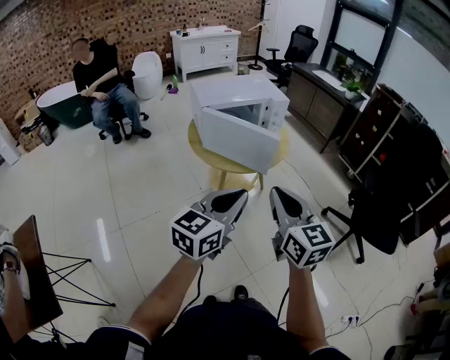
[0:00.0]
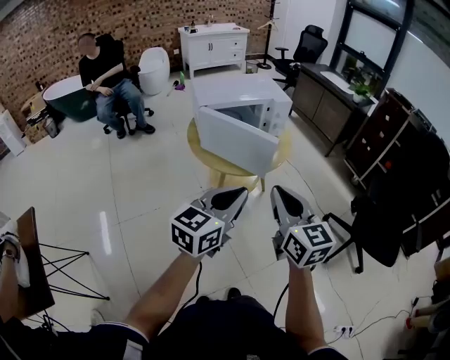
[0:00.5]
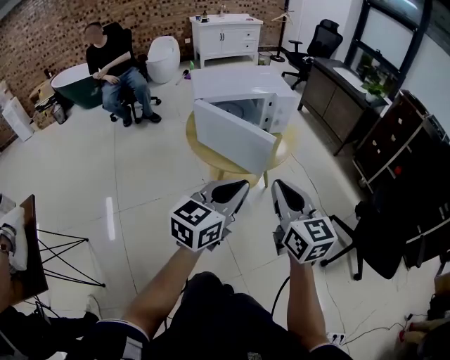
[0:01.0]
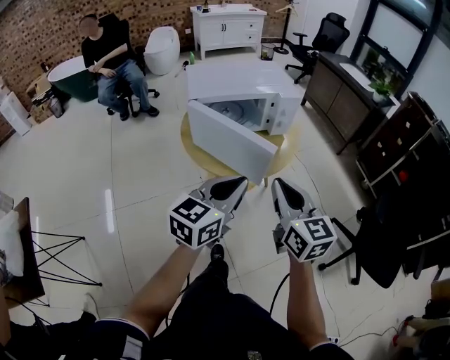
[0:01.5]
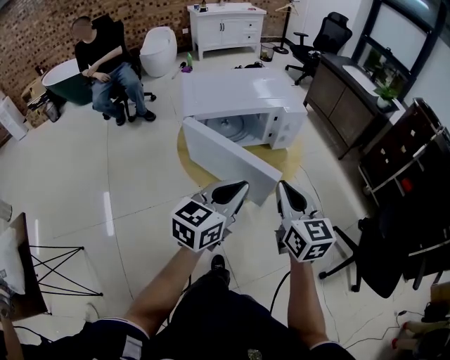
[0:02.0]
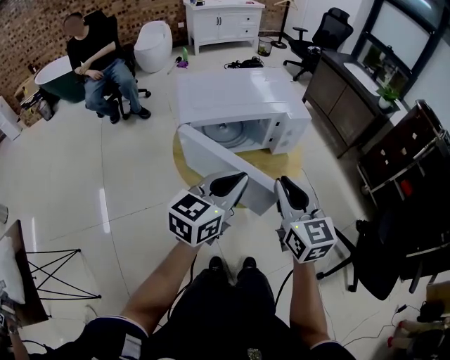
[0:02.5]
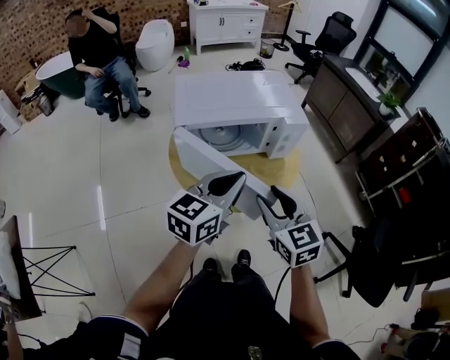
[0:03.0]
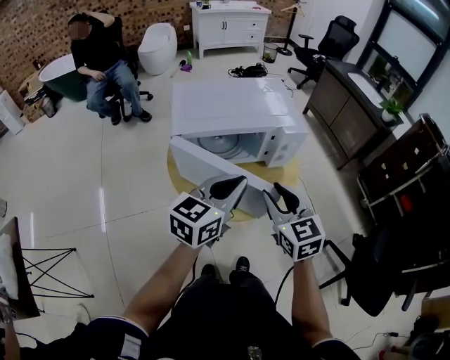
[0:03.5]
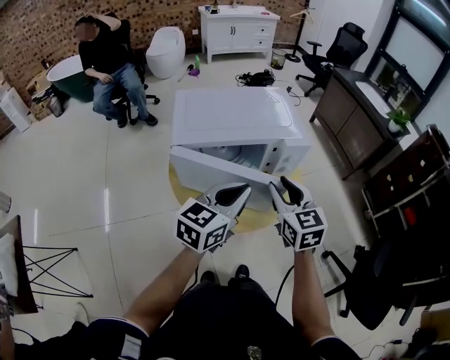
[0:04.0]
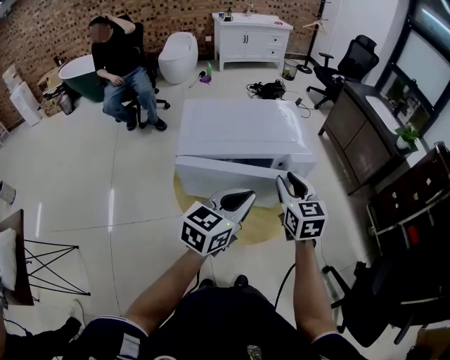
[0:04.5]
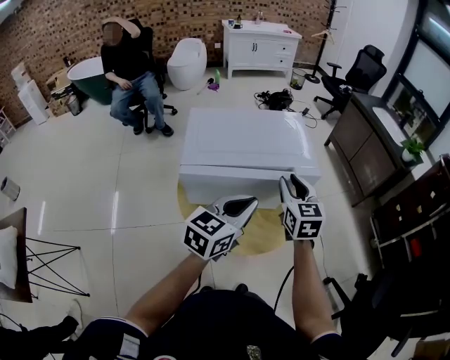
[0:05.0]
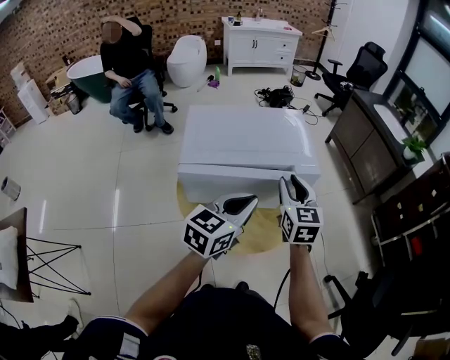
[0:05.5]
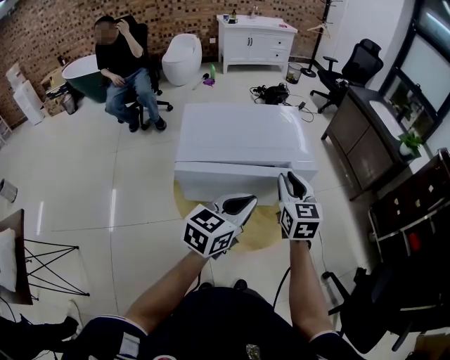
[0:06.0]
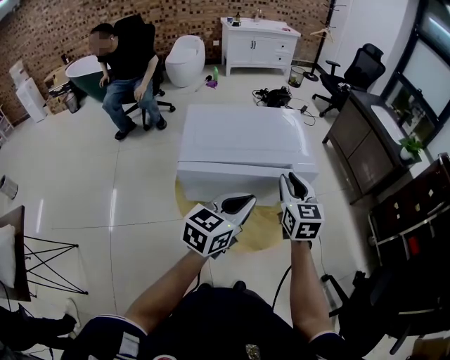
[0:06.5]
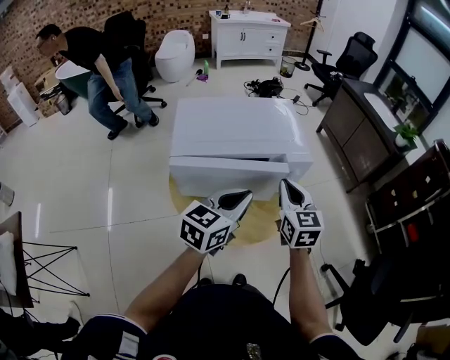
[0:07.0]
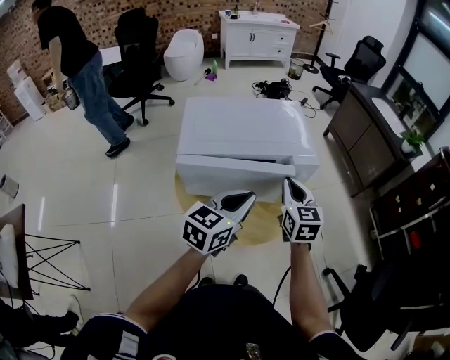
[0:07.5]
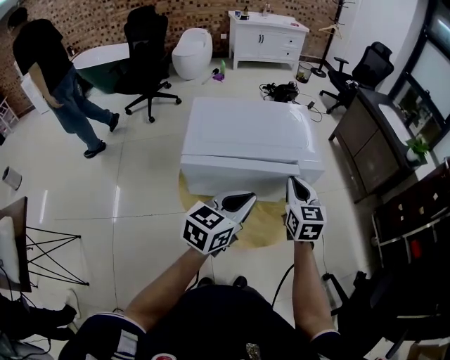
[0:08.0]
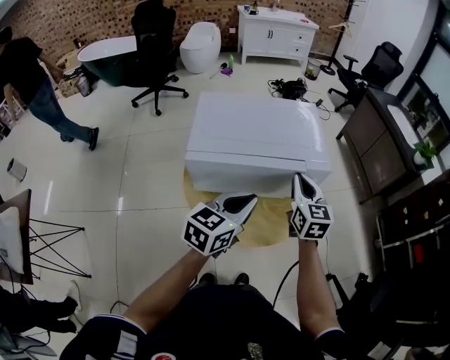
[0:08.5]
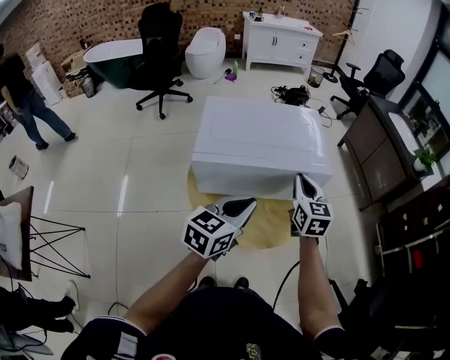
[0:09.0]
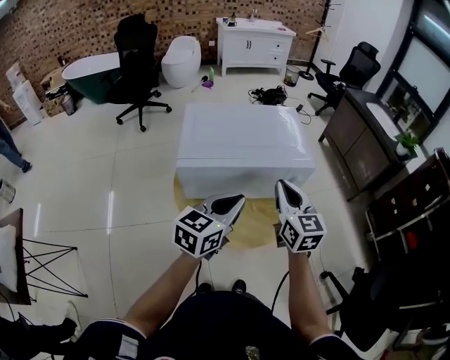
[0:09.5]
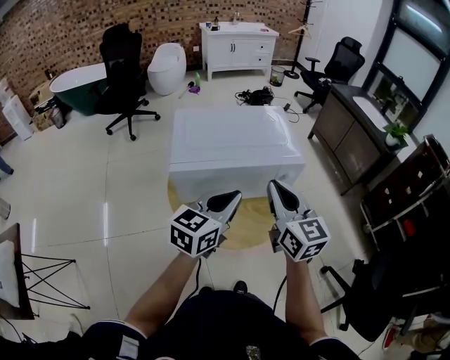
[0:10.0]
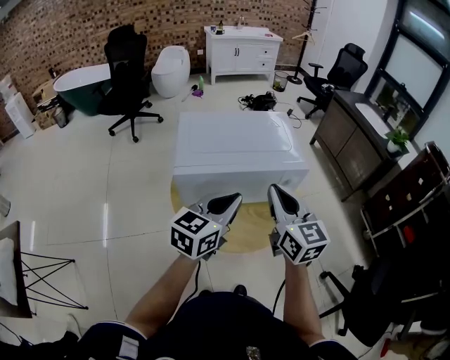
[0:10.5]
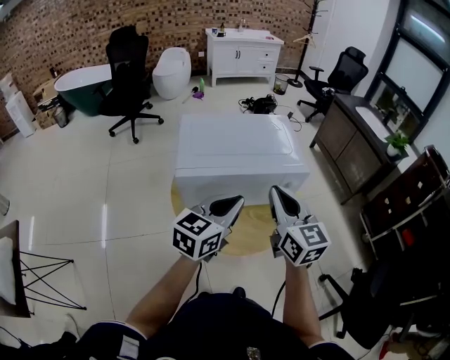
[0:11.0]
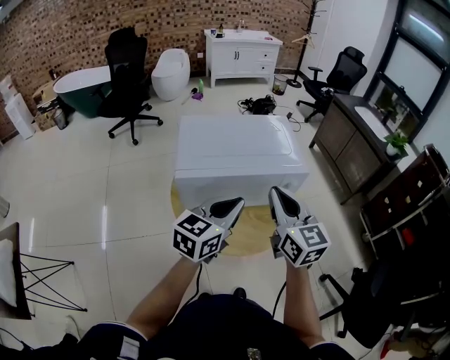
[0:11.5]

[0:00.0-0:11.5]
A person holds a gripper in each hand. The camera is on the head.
0:00.0 to 0:02.0: The two grippers go some 25 cm forward.
0:02.0 to 0:04.0: Both grippers travel together forward, roughly 15 cm. The right gripper opens up.
0:04.0 to 0:06.0: The right gripper moves forward, approximately 10 cm.
0:06.0 to 0:07.5: The right gripper closes.
0:07.5 to 0:09.5: The right gripper moves some 5 cm.
0:09.5 to 0:11.5: The right gripper goes about 5 cm upward.

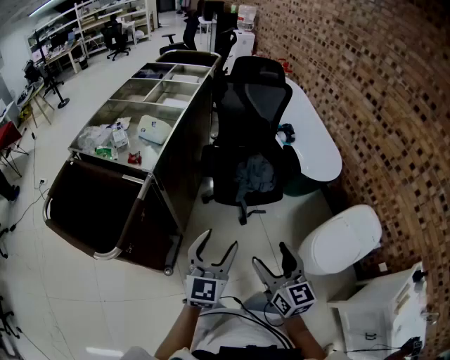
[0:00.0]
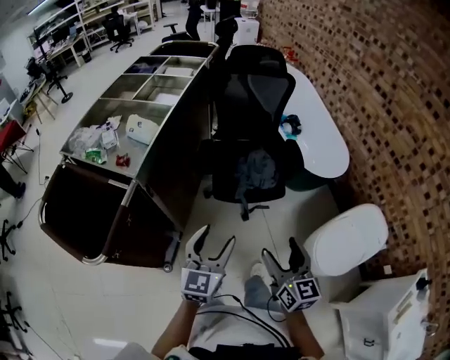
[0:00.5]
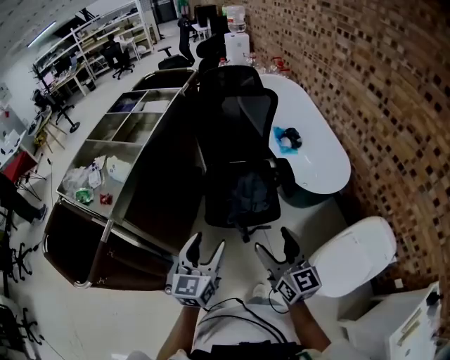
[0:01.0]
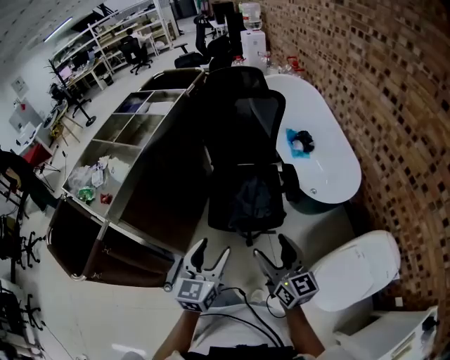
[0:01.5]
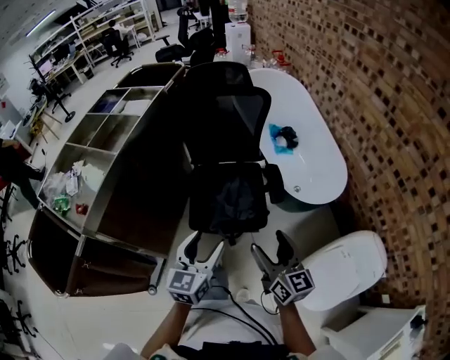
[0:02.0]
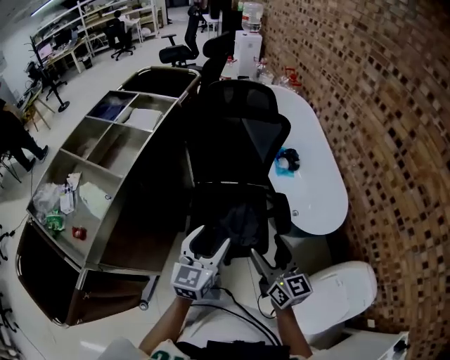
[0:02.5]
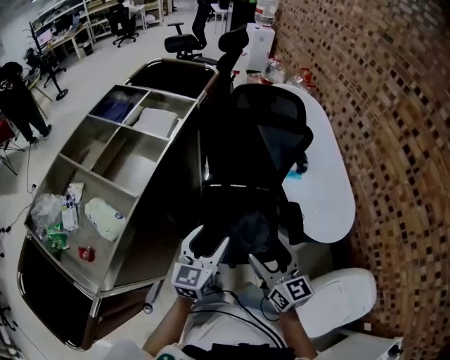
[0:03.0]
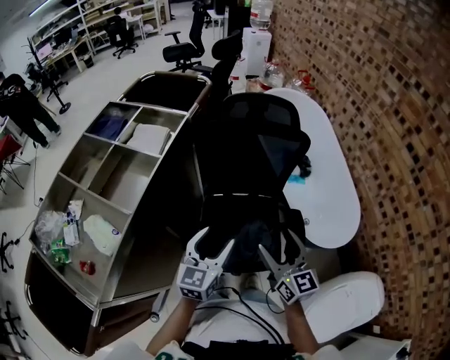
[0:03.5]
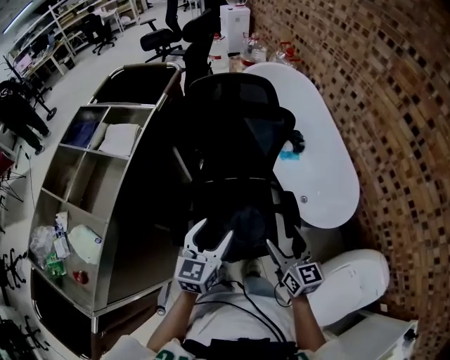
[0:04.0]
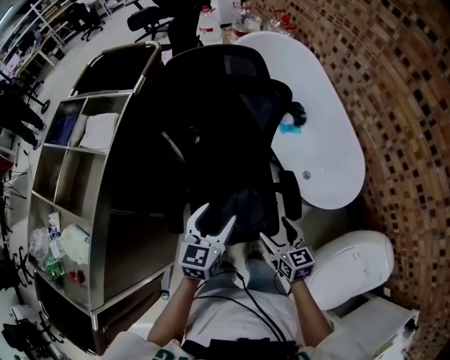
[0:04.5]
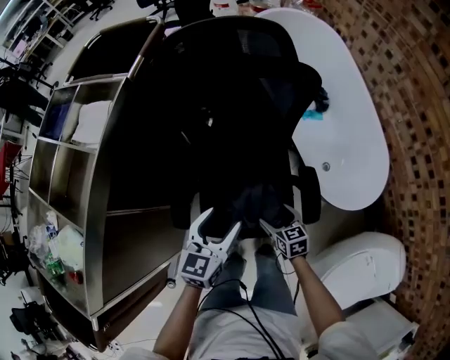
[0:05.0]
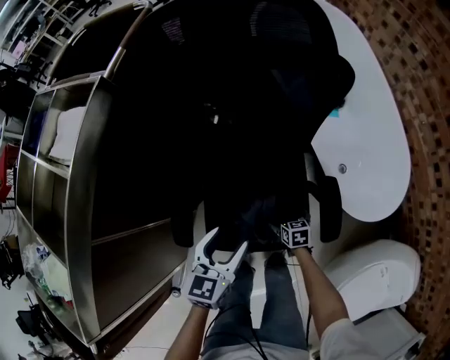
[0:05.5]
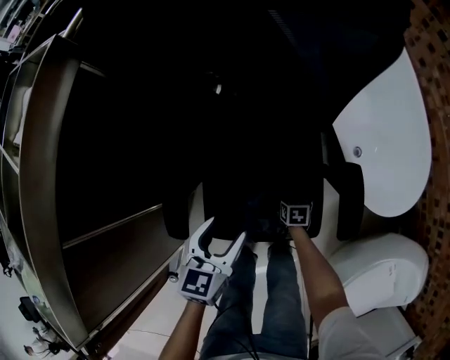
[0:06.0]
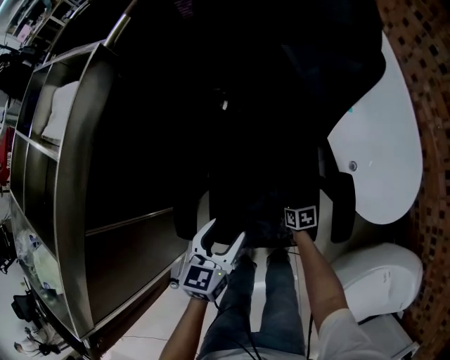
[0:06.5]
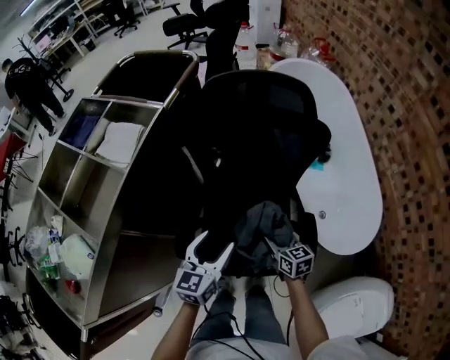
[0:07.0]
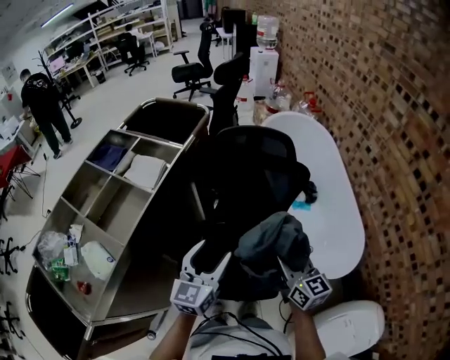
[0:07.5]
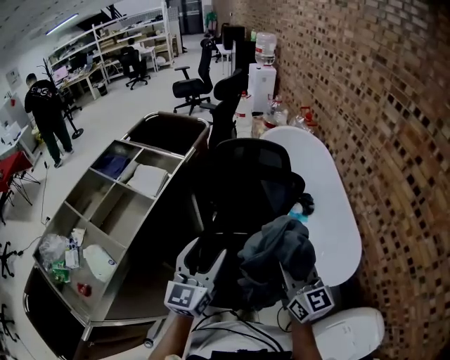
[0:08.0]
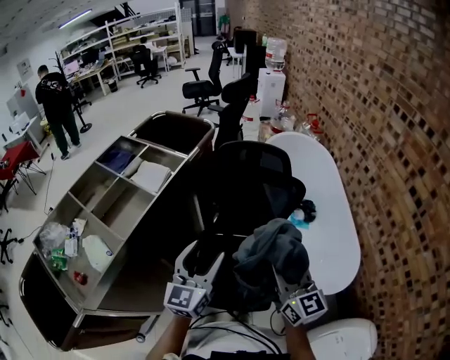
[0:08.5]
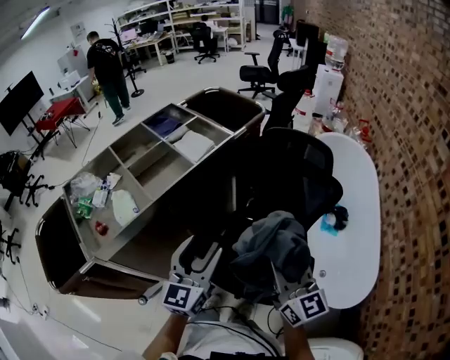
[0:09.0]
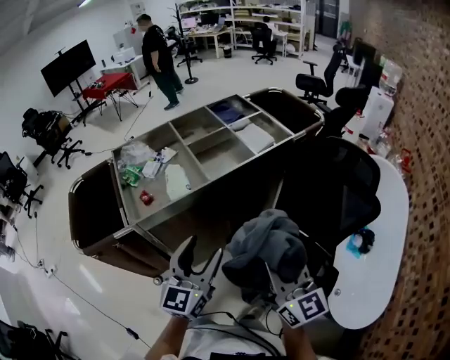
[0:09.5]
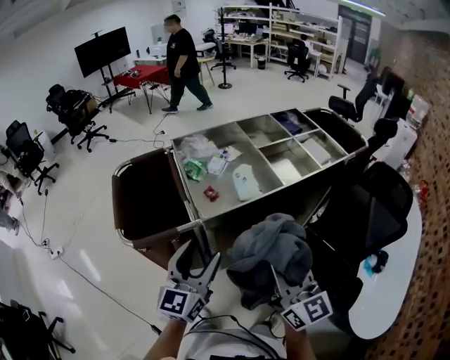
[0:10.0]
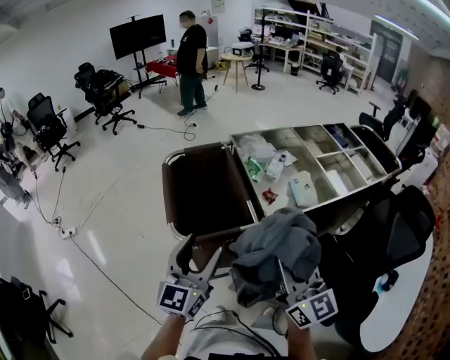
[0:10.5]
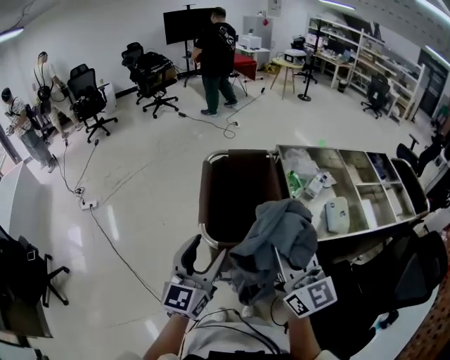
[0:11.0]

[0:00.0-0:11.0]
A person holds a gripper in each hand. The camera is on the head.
0:00.0 to 0:02.0: Both grippers travel together forward and to the right, approximately 35 cm.
0:02.0 to 0:03.5: The right gripper shifts approximately 30 cm forward and to the left; the left gripper is displaced forward by some 25 cm.
0:03.5 to 0:05.5: The right gripper is displaced downward by about 50 cm, tips its fingers downward by some 50 degrees, and opens. Meanwhile the left gripper moves downward, some 20 cm.
0:05.5 to 0:07.5: The right gripper goes about 50 cm upward, tips its fingers upward by about 50 degrees, and closes. The left gripper is displaced upward by roughly 25 cm, and turns by roughly 20 degrees.
0:07.5 to 0:09.0: The left gripper shifts roughly 10 cm backward, upward and to the left, and turns by about 30 degrees. The right gripper heads upward and to the left, covering some 10 cm, and swivels roughly 20 degrees.
0:09.0 to 0:11.0: Both grippers are carried roughly 70 cm. The right gripper rotates some 50 degrees. The left gripper swivels some 50 degrees.

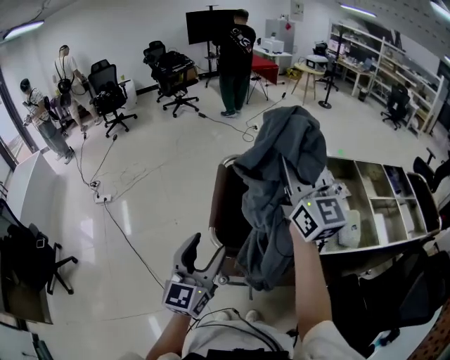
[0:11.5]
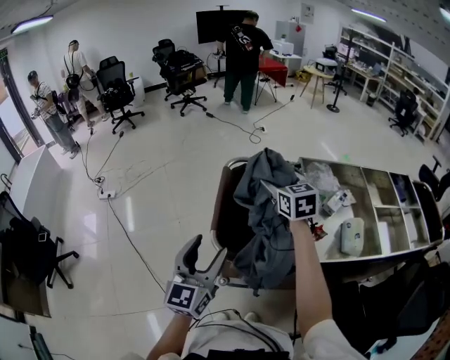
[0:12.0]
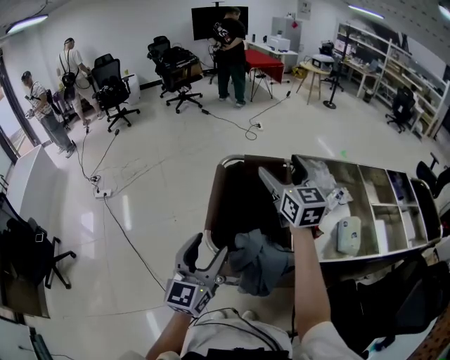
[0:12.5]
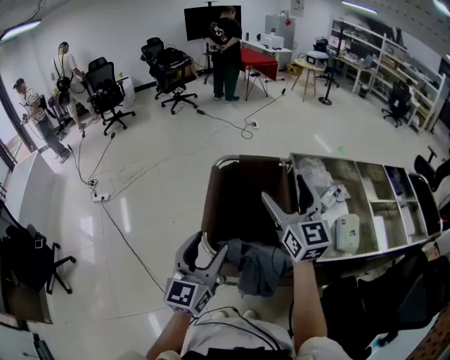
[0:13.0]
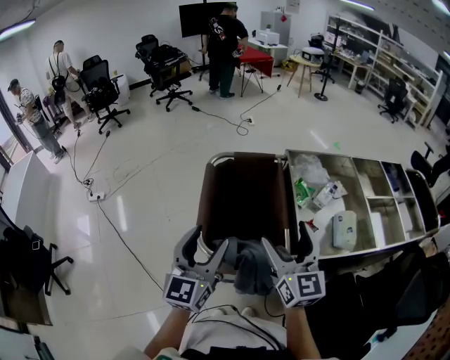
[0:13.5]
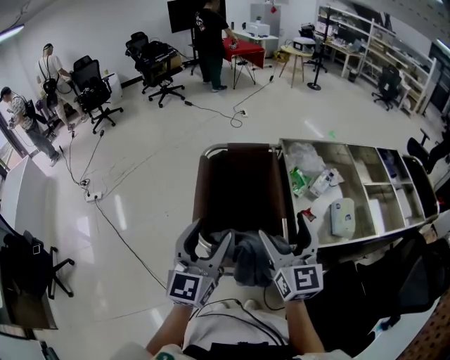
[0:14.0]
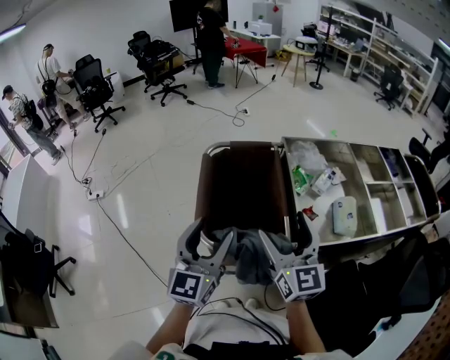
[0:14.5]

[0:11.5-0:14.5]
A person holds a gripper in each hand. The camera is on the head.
0:11.5 to 0:13.0: The right gripper travels downward by about 10 cm, and opens up.
0:13.0 to 0:14.5: The right gripper heads backward and downward, covering some 15 cm. The left gripper ends up approximately 5 cm from where it was.

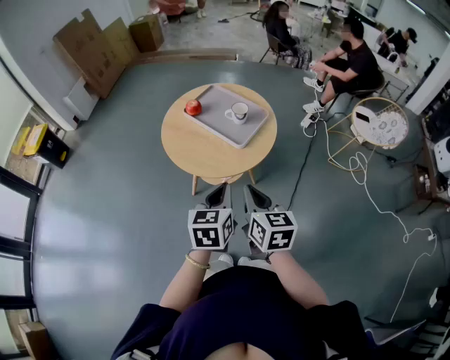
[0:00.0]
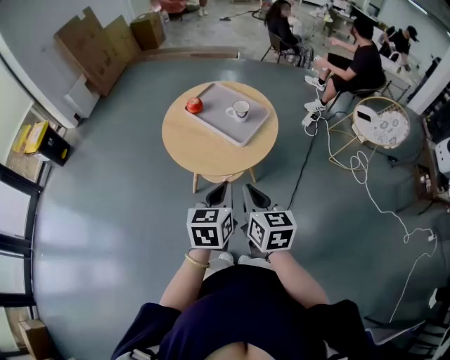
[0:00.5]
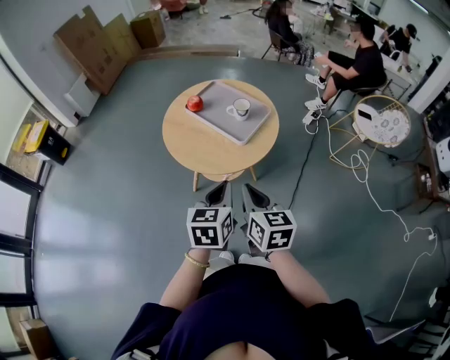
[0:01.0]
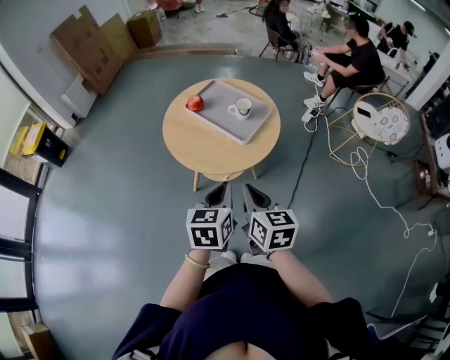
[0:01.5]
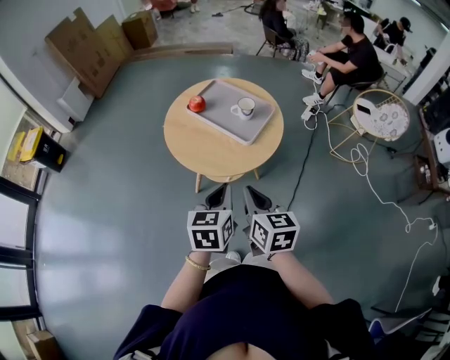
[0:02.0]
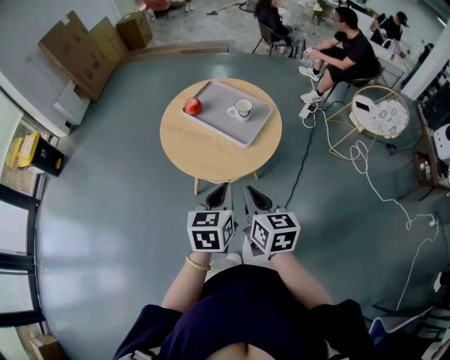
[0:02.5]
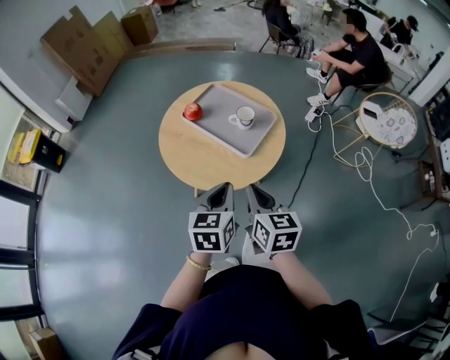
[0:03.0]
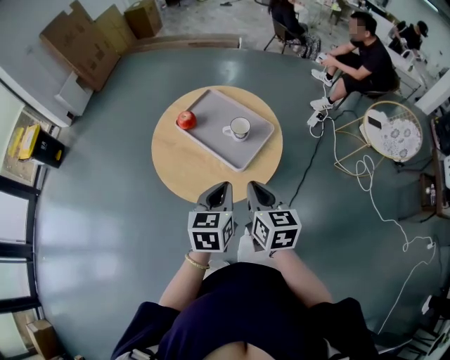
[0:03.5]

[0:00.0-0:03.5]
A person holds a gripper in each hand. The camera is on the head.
0:00.0 to 0:02.0: The right gripper moves to the left, about 5 cm.
0:02.0 to 0:03.5: Both grippers travel together forward and to the right, some 15 cm.
